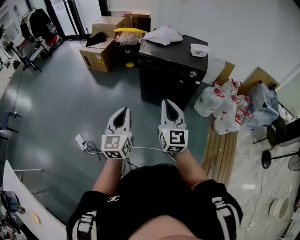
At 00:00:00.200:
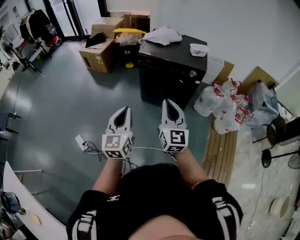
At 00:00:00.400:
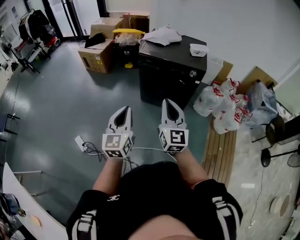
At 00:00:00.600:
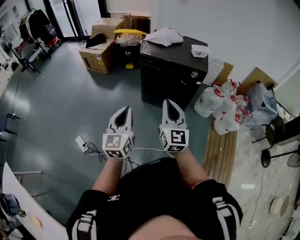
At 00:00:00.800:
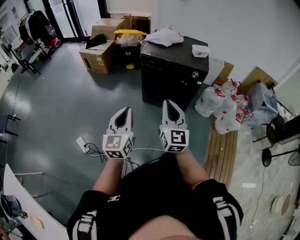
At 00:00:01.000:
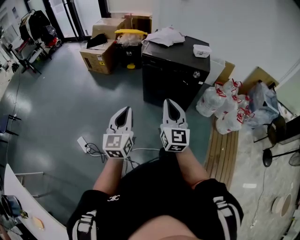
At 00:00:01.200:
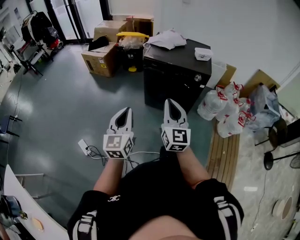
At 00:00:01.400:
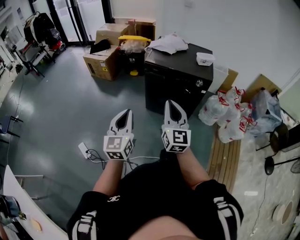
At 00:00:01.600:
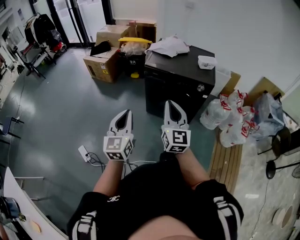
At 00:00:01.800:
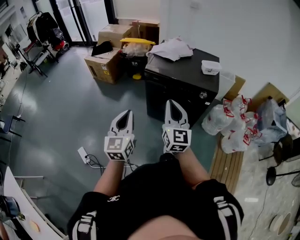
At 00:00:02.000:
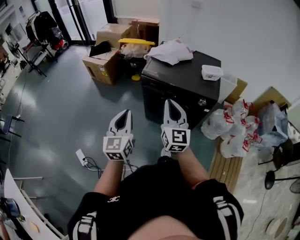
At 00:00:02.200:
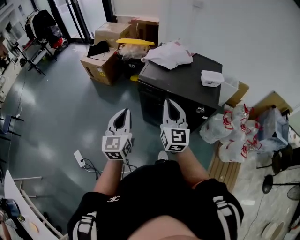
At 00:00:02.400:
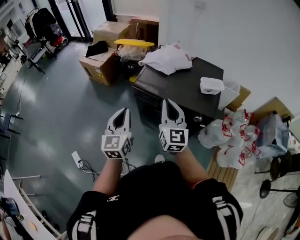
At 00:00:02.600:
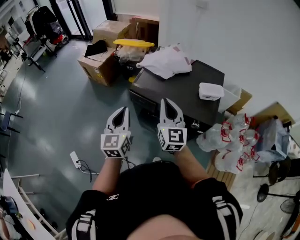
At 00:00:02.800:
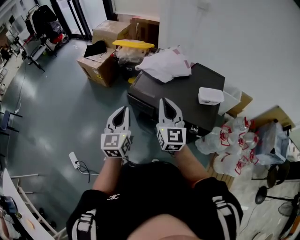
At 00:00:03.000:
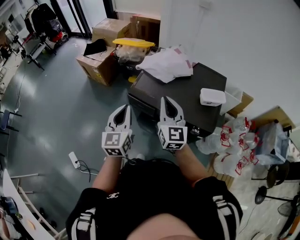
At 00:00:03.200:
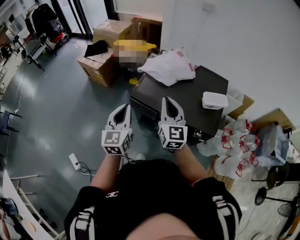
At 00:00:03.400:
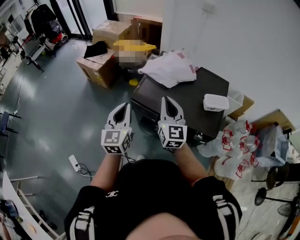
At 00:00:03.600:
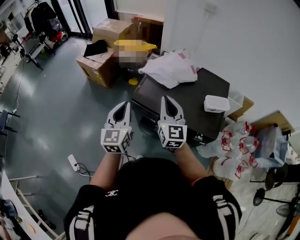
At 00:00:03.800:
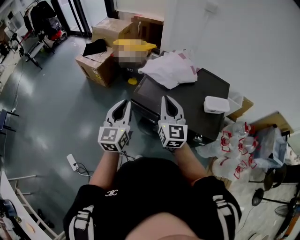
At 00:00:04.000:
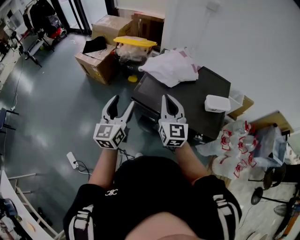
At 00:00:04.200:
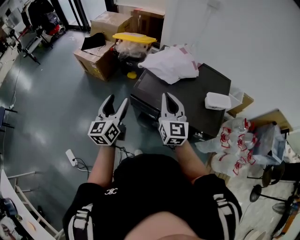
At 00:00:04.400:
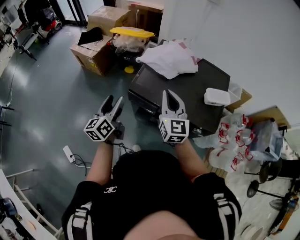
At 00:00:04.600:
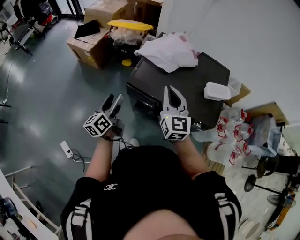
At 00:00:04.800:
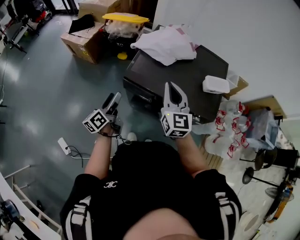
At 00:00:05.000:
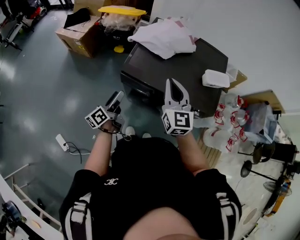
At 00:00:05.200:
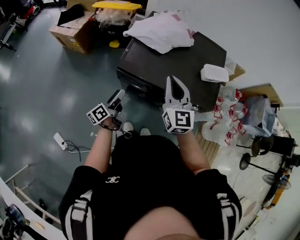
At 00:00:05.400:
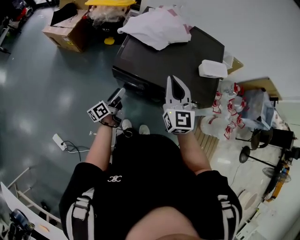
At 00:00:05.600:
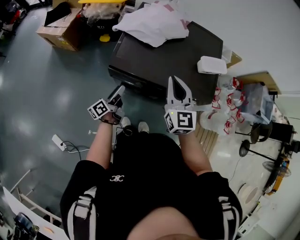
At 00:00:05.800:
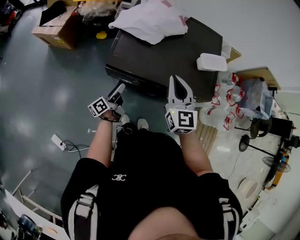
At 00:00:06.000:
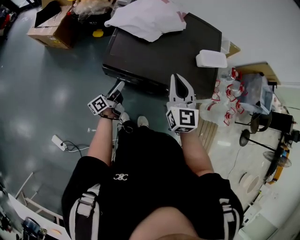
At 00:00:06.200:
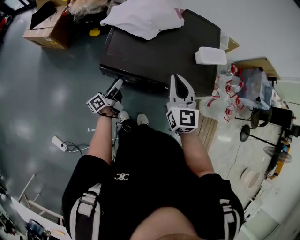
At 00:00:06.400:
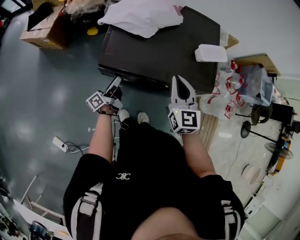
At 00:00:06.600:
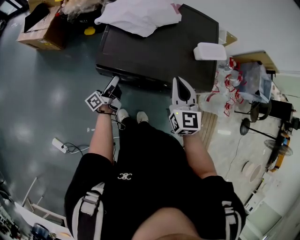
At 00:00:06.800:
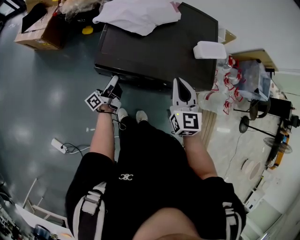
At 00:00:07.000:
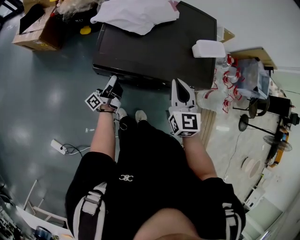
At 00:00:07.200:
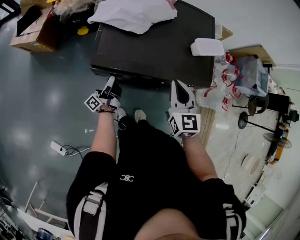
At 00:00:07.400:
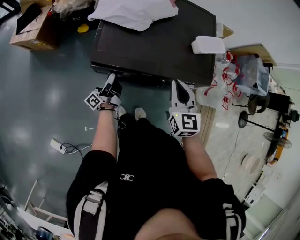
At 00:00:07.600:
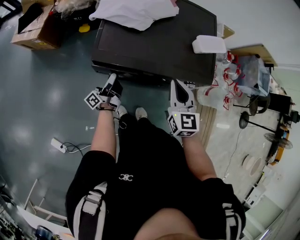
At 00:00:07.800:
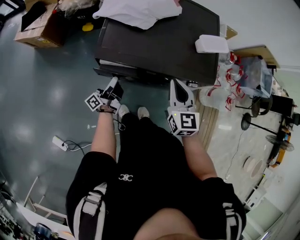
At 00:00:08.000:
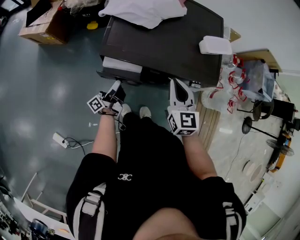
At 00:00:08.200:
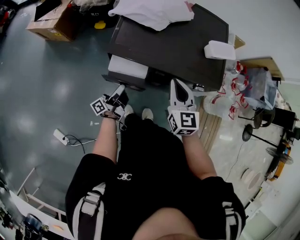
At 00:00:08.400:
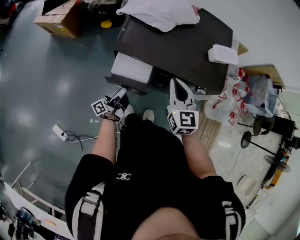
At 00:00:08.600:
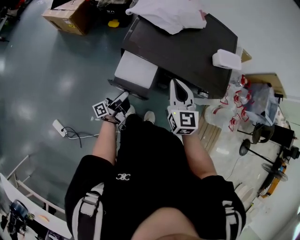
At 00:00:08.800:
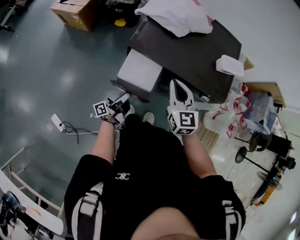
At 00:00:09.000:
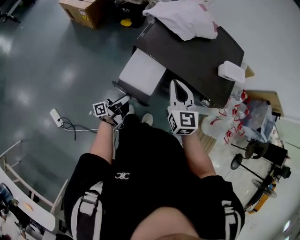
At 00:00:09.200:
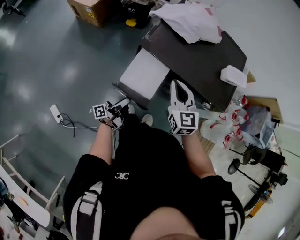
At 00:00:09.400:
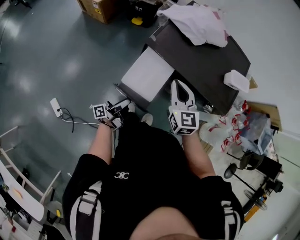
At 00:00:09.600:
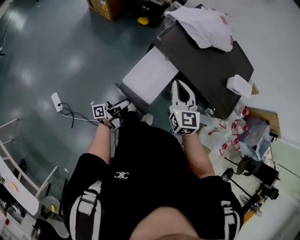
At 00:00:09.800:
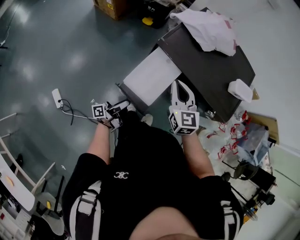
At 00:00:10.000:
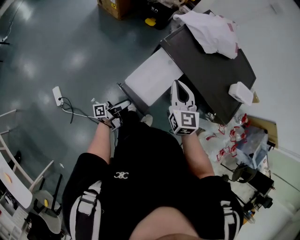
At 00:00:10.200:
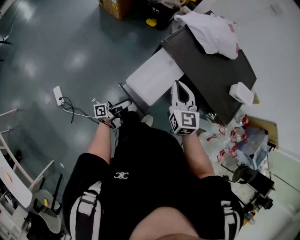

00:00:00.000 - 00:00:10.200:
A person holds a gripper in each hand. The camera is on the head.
00:00:00.000 - 00:00:01.400: The right gripper changes place by roughly 5 cm. The left gripper shifts by roughly 5 cm.
00:00:01.400 - 00:00:03.000: The two grippers travel together, forward, some 50 cm.
00:00:03.000 - 00:00:04.400: The left gripper goes some 15 cm to the left, forward and downward, turns by about 30 degrees, and opens up. The right gripper moves forward, some 5 cm.
00:00:04.400 - 00:00:05.800: The right gripper moves downward and to the right, approximately 10 cm. Meanwhile the left gripper moves downward, some 25 cm, and rolls counterclockwise, seen from behind, by approximately 40 degrees.
00:00:05.800 - 00:00:07.200: The right gripper shifts roughly 5 cm downward. Meanwhile the left gripper changes its angle by roughly 20 degrees.
00:00:07.200 - 00:00:08.800: The right gripper heads to the left and backward, covering approximately 10 cm. The left gripper heads backward, covering about 15 cm.
00:00:08.800 - 00:00:10.200: The right gripper travels to the left by roughly 10 cm. Meanwhile the left gripper shifts some 10 cm backward.

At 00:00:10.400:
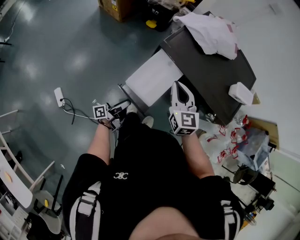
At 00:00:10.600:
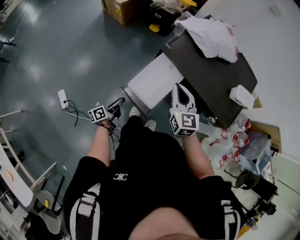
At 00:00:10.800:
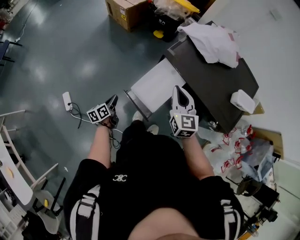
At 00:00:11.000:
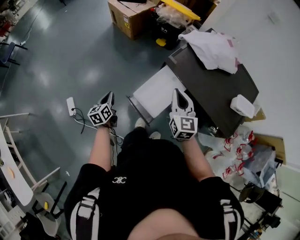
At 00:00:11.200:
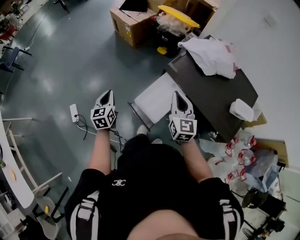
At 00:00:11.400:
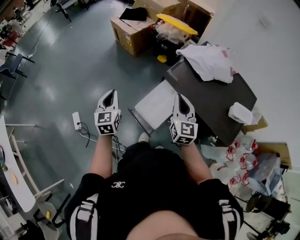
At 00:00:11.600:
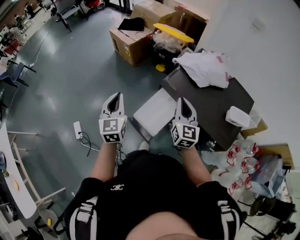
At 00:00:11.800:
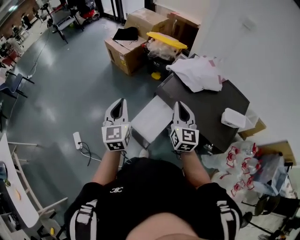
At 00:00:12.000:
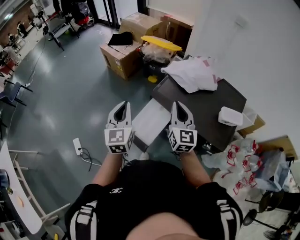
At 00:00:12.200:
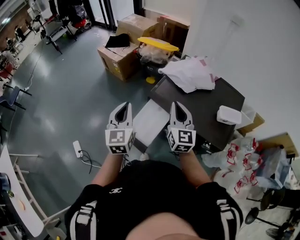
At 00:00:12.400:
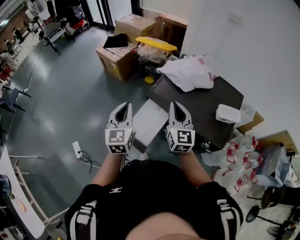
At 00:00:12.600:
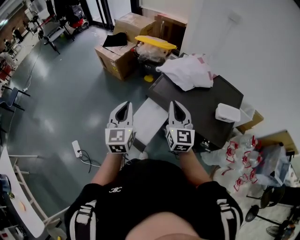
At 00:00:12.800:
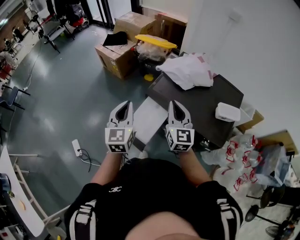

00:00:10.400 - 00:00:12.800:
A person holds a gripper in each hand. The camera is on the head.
00:00:10.400 - 00:00:11.600: The right gripper goes some 10 cm upward; the left gripper goes roughly 30 cm upward, rotates around the line of its fingers by roughly 80 degrees, clockwise from behind, and closes.
00:00:11.600 - 00:00:12.800: The right gripper changes place by some 5 cm. The left gripper goes some 10 cm to the right.

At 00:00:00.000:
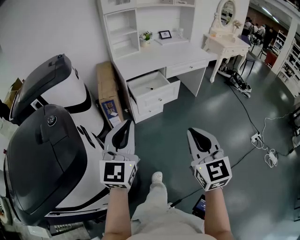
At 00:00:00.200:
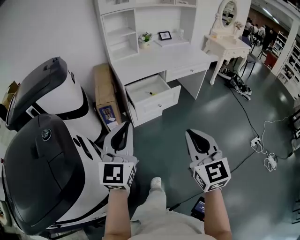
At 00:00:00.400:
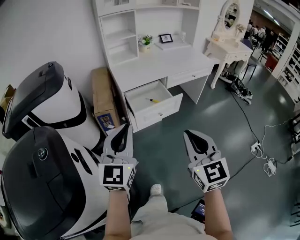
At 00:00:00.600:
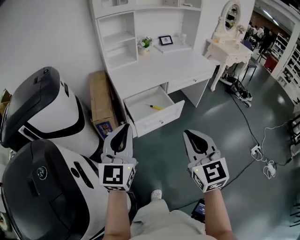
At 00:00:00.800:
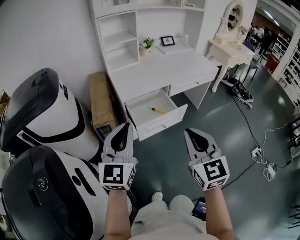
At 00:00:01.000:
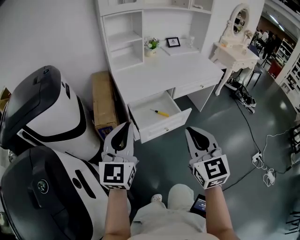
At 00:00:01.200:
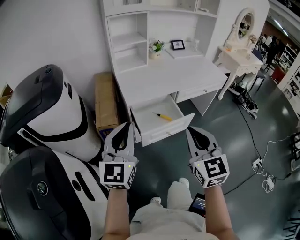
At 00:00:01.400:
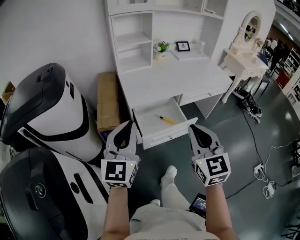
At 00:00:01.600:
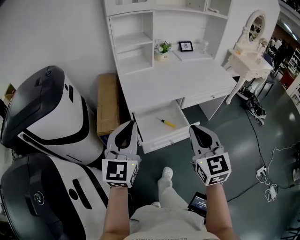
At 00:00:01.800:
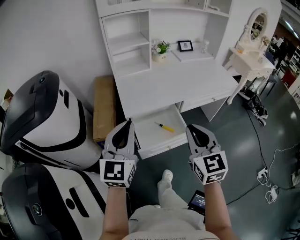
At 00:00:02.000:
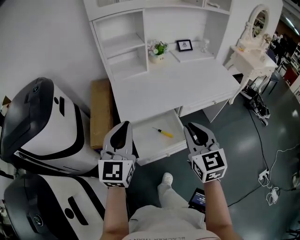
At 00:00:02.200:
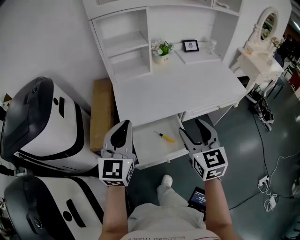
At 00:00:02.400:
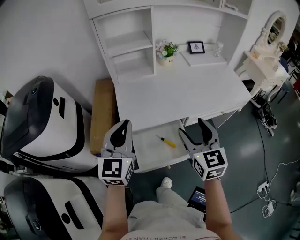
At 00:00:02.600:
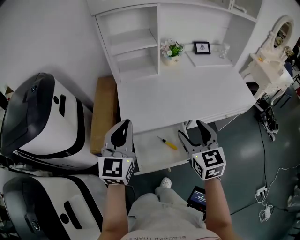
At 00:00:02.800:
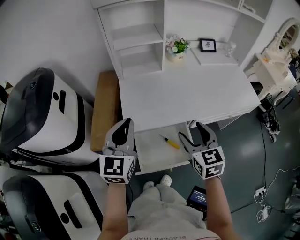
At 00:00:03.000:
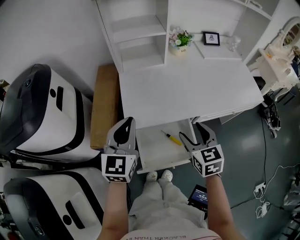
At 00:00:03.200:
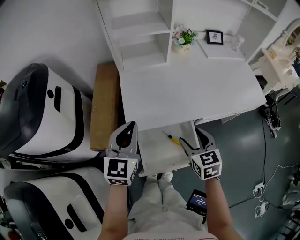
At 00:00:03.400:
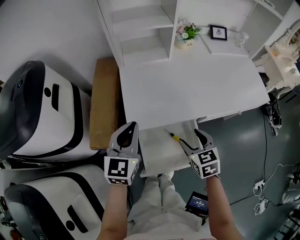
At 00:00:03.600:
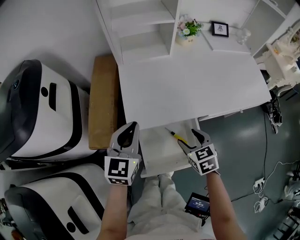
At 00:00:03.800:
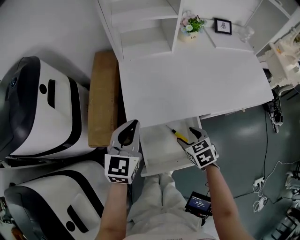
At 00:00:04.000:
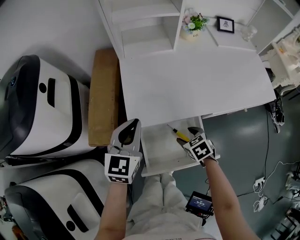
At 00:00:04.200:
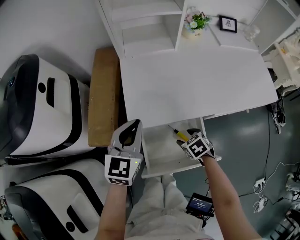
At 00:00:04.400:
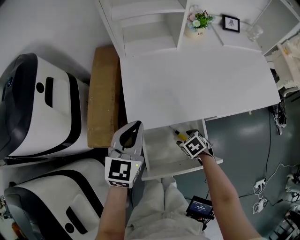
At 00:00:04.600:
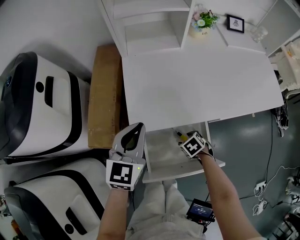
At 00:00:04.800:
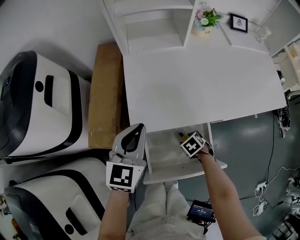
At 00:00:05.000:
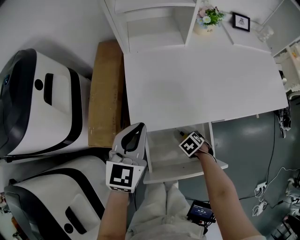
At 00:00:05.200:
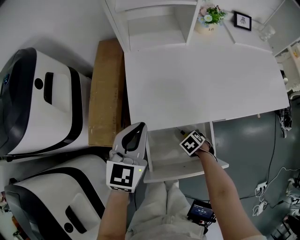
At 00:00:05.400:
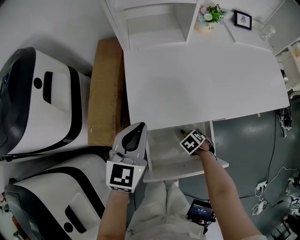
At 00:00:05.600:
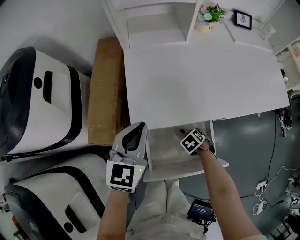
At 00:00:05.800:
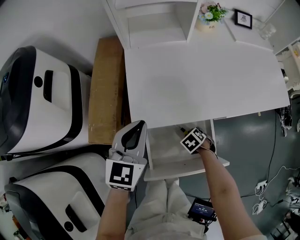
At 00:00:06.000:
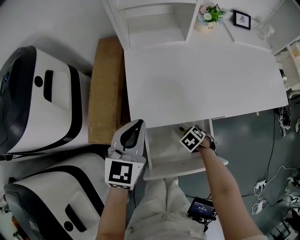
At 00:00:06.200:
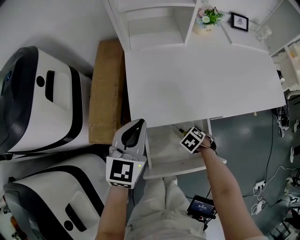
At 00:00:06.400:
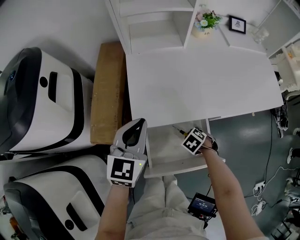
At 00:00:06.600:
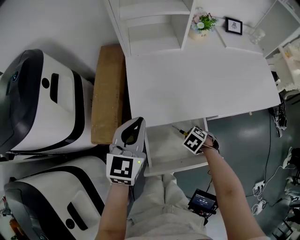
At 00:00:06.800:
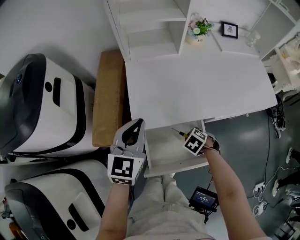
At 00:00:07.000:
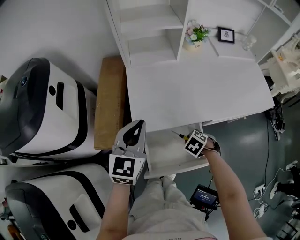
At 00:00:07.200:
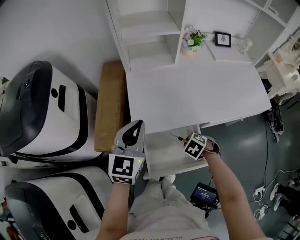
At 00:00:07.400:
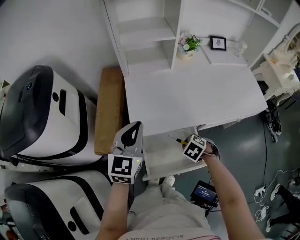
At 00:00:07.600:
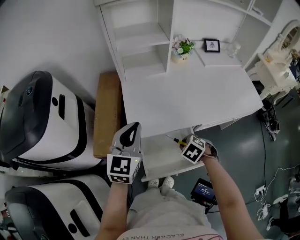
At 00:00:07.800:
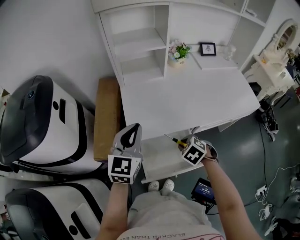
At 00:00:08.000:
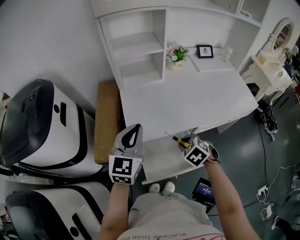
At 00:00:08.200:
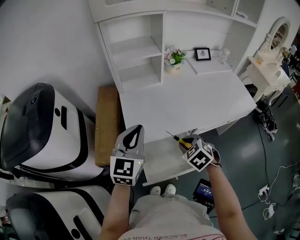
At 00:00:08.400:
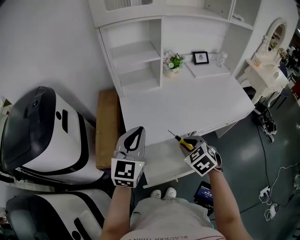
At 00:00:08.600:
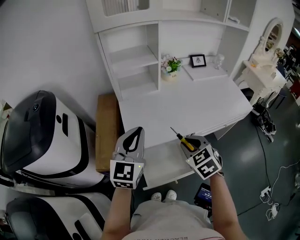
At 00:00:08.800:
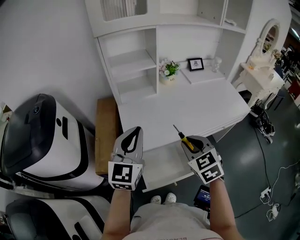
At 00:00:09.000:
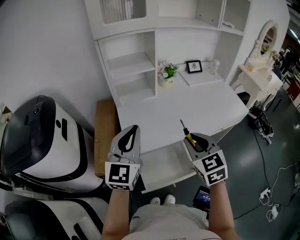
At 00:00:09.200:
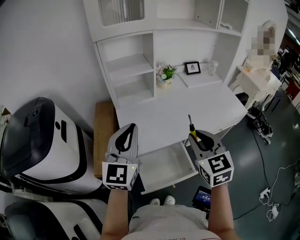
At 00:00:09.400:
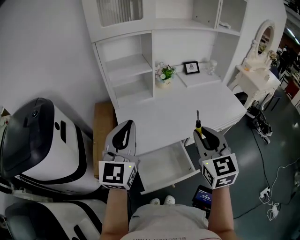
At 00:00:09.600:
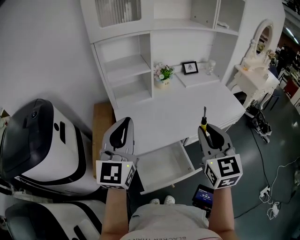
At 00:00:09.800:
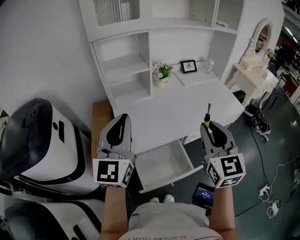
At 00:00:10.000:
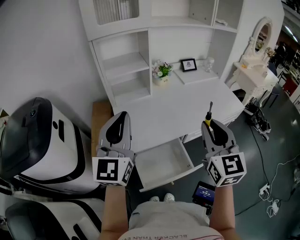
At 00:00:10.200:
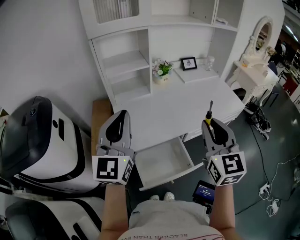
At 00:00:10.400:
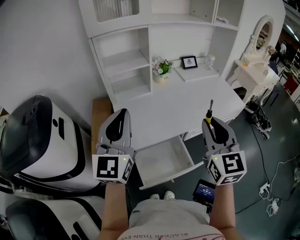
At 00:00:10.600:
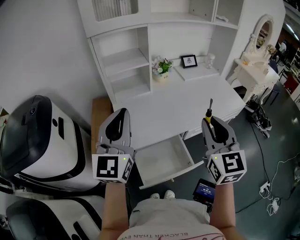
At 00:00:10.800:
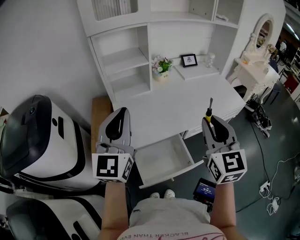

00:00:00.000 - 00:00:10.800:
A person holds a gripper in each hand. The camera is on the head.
00:00:00.000 - 00:00:01.600: The grippers both shift forward by about 35 cm.
00:00:01.600 - 00:00:03.000: The right gripper moves forward and downward, roughly 30 cm, swivels about 20 degrees, and opens up. Meanwhile the left gripper travels forward by some 25 cm.
00:00:03.000 - 00:00:04.600: The right gripper moves downward, some 30 cm, and tips its fingers downward by some 40 degrees; the left gripper is displaced downward by approximately 10 cm.
00:00:04.600 - 00:00:06.200: The right gripper closes up.
00:00:06.200 - 00:00:07.800: The left gripper moves upward, about 10 cm, while the right gripper goes roughly 20 cm upward.
00:00:07.800 - 00:00:09.200: The left gripper travels upward by roughly 10 cm, while the right gripper heads upward, covering about 25 cm, and points its fingers about 50 degrees further upward.
00:00:09.200 - 00:00:10.800: The right gripper goes about 5 cm upward.
